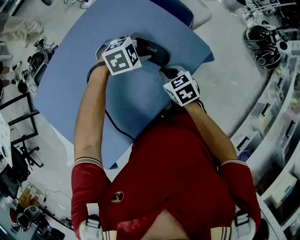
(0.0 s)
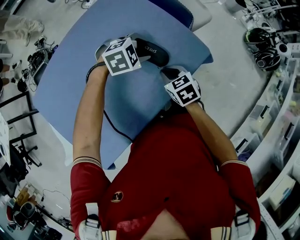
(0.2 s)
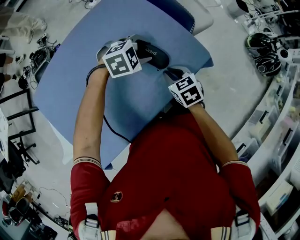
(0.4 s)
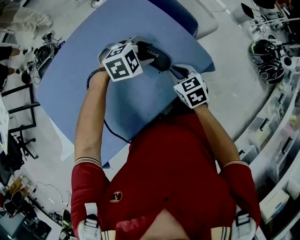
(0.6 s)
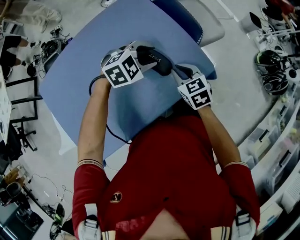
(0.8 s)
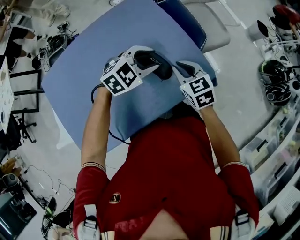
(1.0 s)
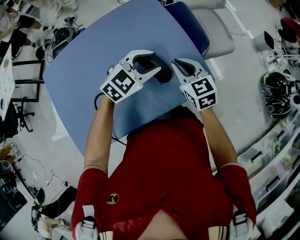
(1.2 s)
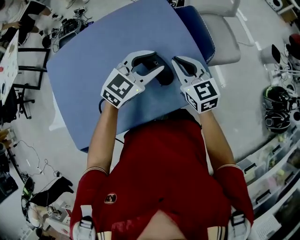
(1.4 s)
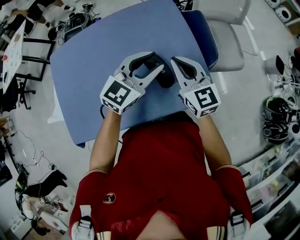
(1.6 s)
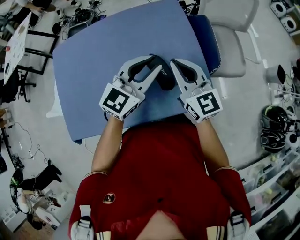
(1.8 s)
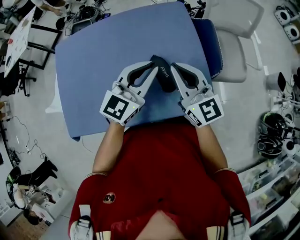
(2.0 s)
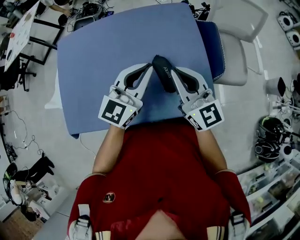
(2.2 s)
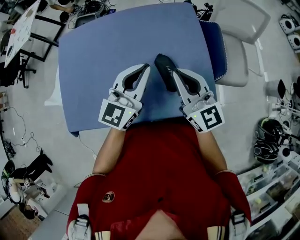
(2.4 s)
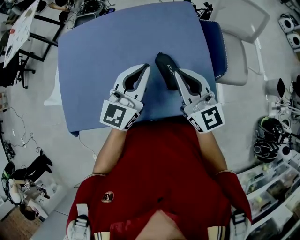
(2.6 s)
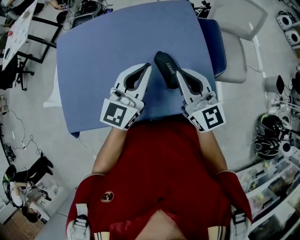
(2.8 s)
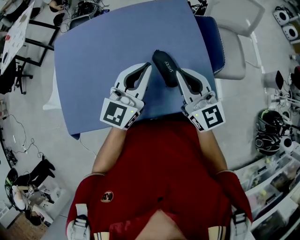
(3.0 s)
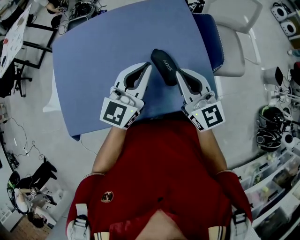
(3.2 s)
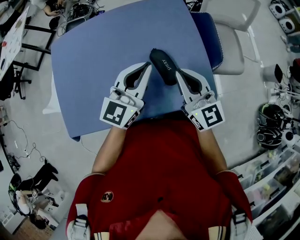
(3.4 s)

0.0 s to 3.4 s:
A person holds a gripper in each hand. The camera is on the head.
0.0 to 1.6 s: The grippers both shift upward by roughly 15 cm. The right gripper tilts its fingers approximately 40 degrees upward. The left gripper points its fingers roughly 40 degrees further upward.
1.6 to 3.4 s: The left gripper shifts approximately 5 cm to the left, swivels approximately 20 degrees, and closes; the right gripper goes roughly 5 cm backward.

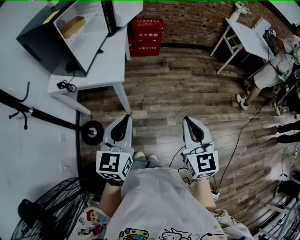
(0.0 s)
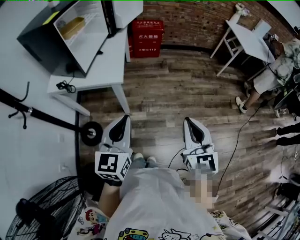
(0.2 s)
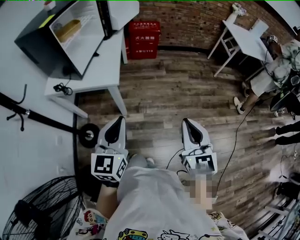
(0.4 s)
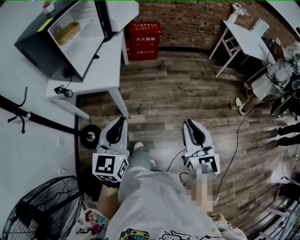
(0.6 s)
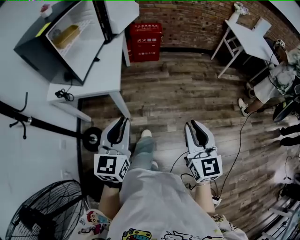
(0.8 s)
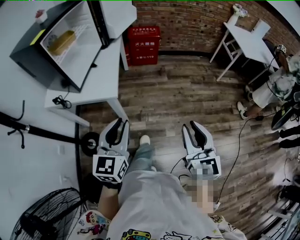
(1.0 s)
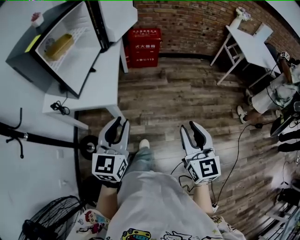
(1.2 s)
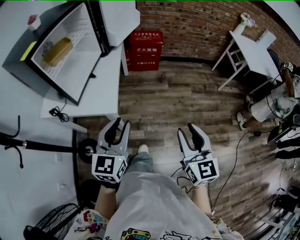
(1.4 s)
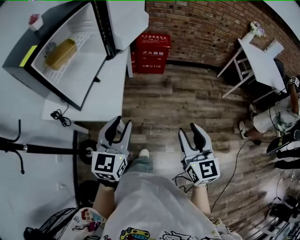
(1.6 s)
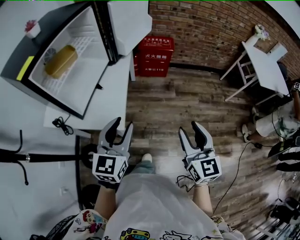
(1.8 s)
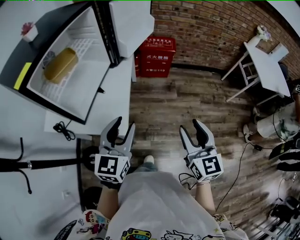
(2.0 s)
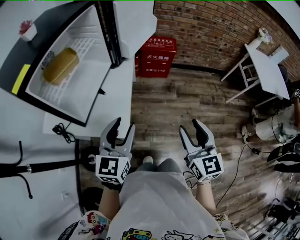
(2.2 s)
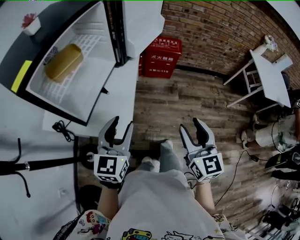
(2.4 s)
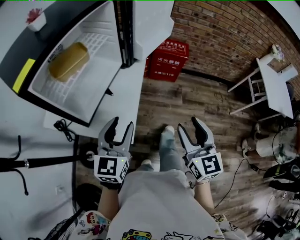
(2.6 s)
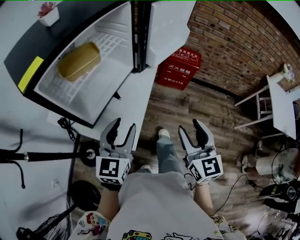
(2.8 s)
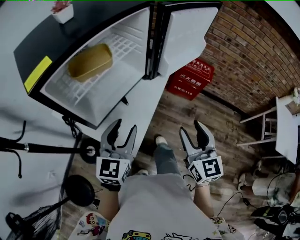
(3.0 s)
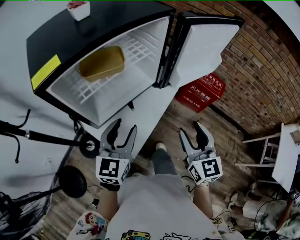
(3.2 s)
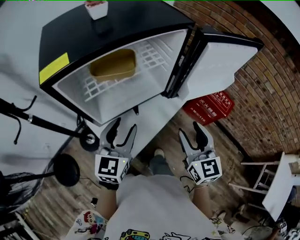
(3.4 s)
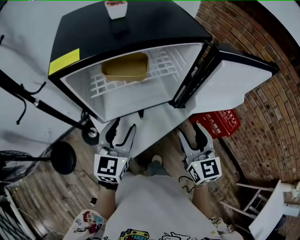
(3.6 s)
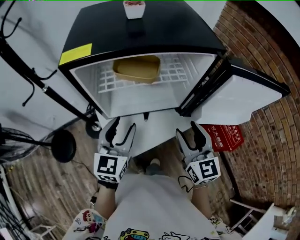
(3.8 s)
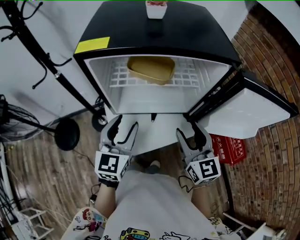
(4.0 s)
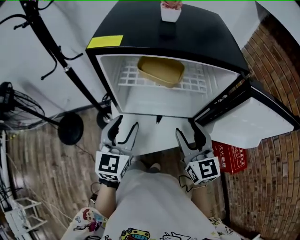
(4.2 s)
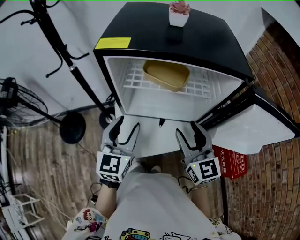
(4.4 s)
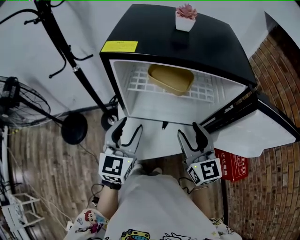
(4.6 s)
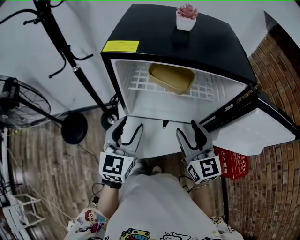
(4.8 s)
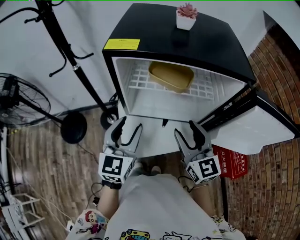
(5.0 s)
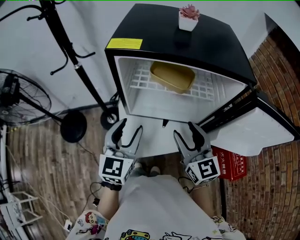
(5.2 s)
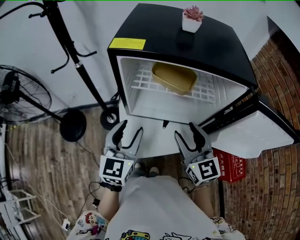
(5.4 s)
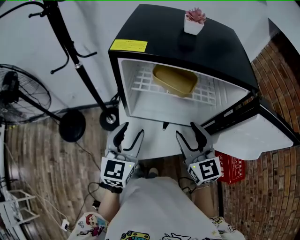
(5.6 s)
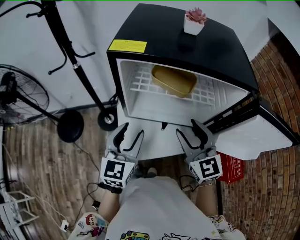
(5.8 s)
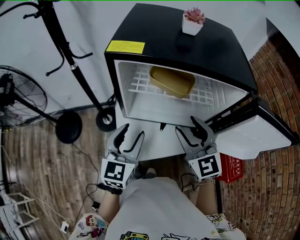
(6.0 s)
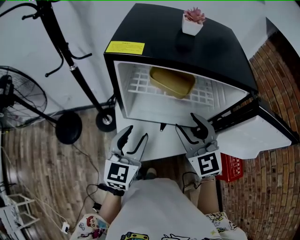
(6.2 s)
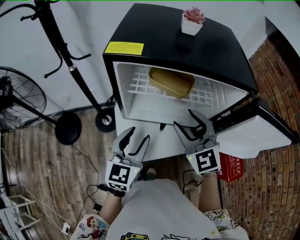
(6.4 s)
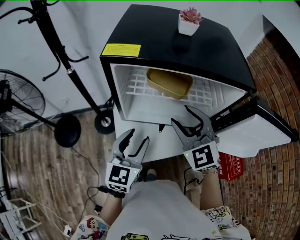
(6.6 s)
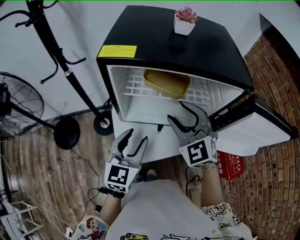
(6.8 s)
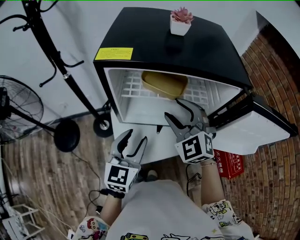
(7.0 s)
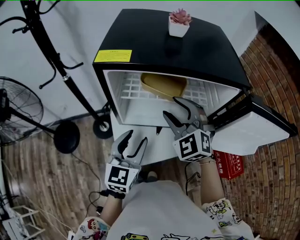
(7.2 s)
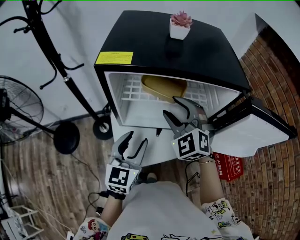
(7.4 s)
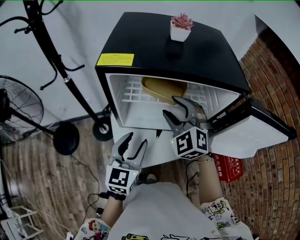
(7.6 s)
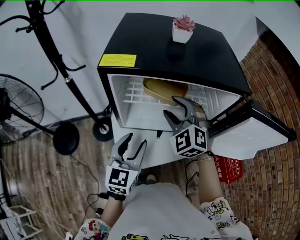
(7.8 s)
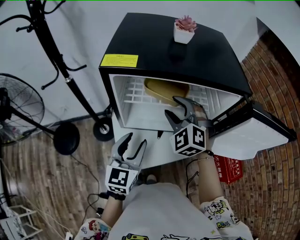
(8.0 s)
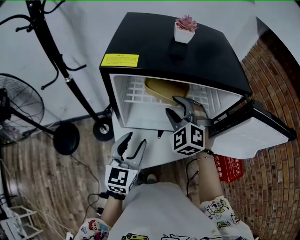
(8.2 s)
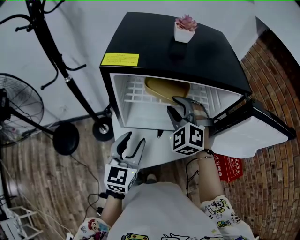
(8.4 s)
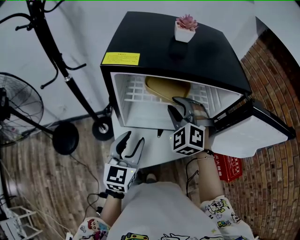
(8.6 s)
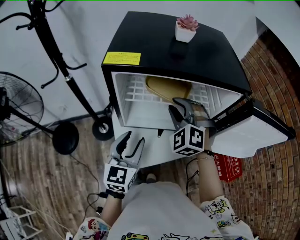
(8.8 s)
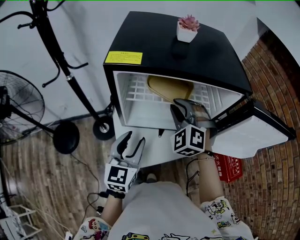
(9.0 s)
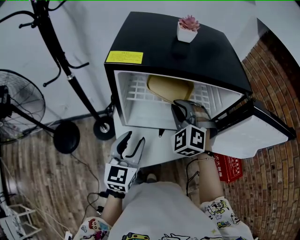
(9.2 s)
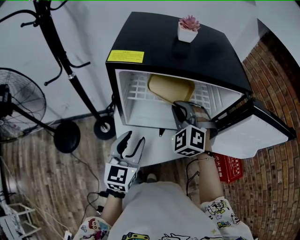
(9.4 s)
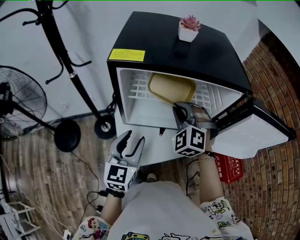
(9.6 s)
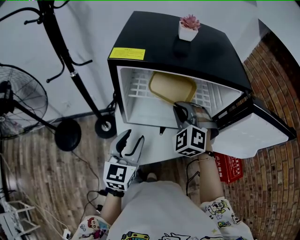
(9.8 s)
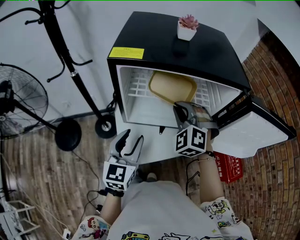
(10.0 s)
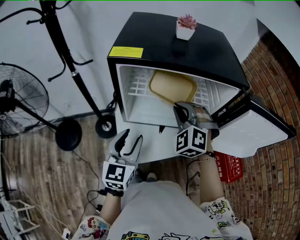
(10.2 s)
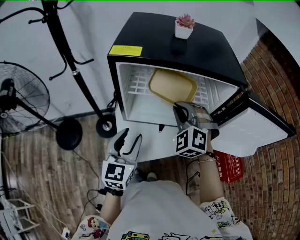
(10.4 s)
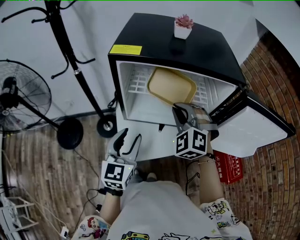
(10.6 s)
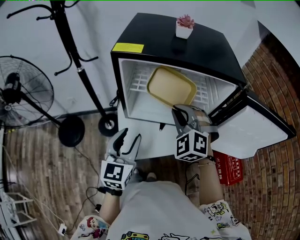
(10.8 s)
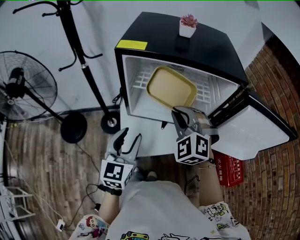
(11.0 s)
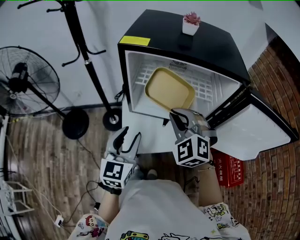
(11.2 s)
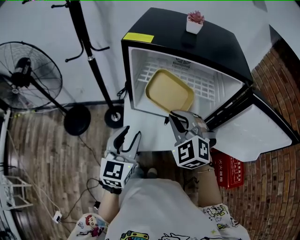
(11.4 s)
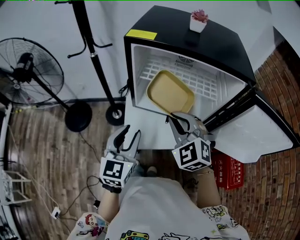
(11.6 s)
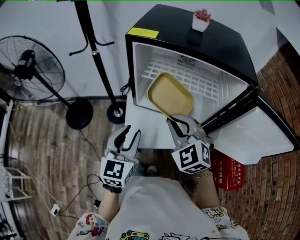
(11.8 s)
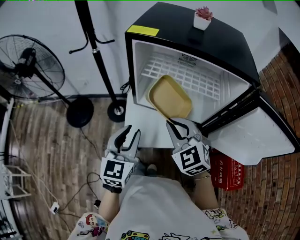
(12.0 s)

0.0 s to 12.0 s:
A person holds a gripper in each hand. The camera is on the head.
0.0 to 1.6 s: The grippers both shift forward by roughly 20 cm. The left gripper opens up. Meanwhile the right gripper opens its fingers.
1.6 to 3.0 s: The left gripper moves forward and to the left, about 20 cm, and swivels roughly 20 degrees. Meanwhile the right gripper travels forward by some 25 cm, and rotates approximately 20 degrees.
3.0 to 4.4 s: The right gripper shifts by roughly 20 cm, and swivels approximately 60 degrees; the left gripper changes place by about 5 cm, and turns by about 60 degrees.
4.4 to 6.0 s: The right gripper rotates about 20 degrees.
6.0 to 7.6 s: The right gripper heads forward, covering approximately 10 cm, and changes its angle by roughly 30 degrees.
7.6 to 9.0 s: The right gripper closes up.
9.0 to 10.4 s: The grippers move only a little.
10.4 to 12.0 s: The left gripper travels backward by roughly 5 cm; the right gripper travels backward by roughly 10 cm, and changes its angle by approximately 30 degrees.

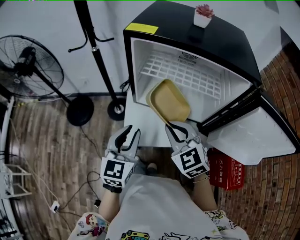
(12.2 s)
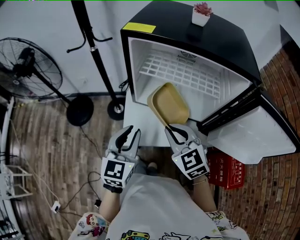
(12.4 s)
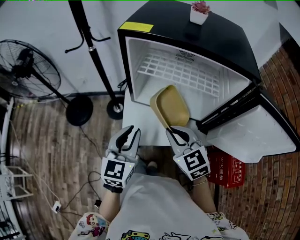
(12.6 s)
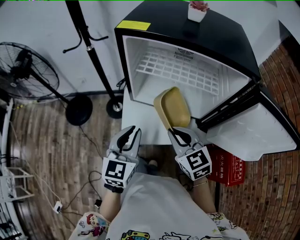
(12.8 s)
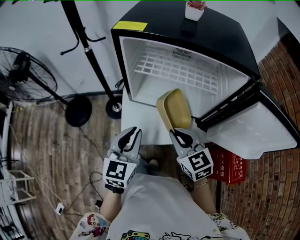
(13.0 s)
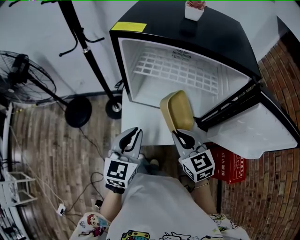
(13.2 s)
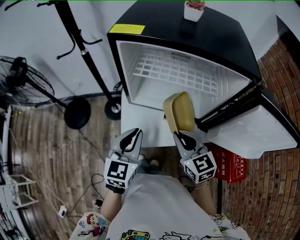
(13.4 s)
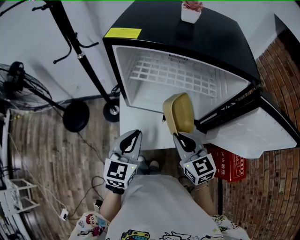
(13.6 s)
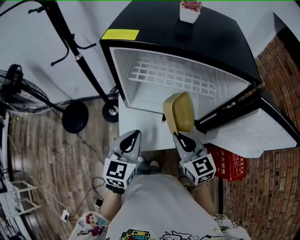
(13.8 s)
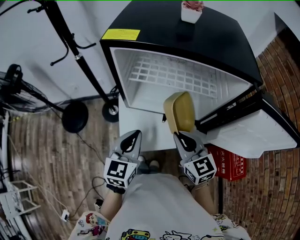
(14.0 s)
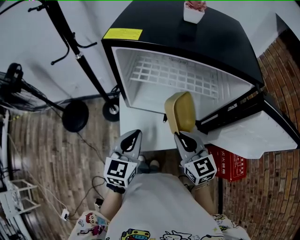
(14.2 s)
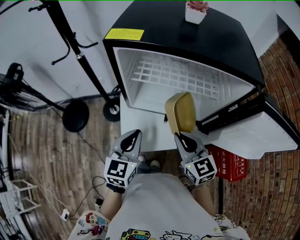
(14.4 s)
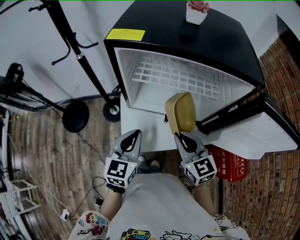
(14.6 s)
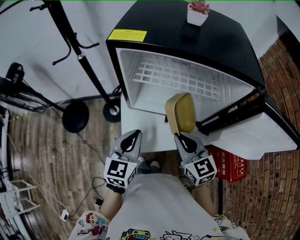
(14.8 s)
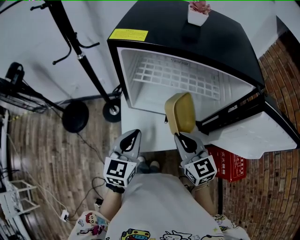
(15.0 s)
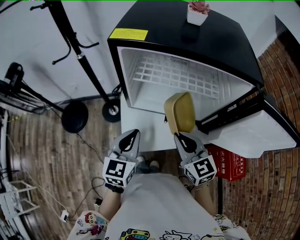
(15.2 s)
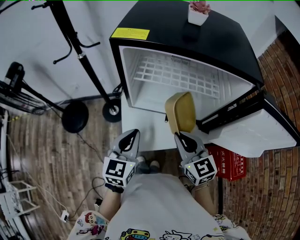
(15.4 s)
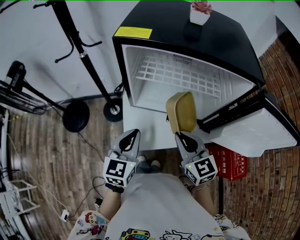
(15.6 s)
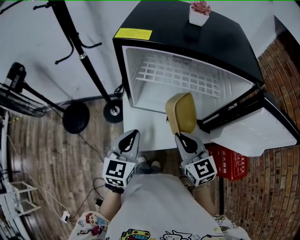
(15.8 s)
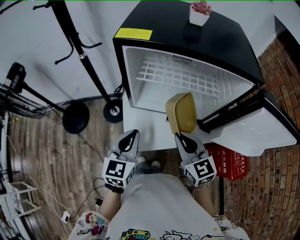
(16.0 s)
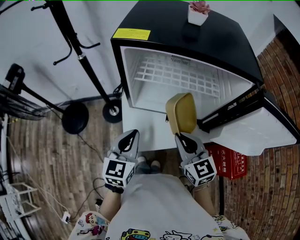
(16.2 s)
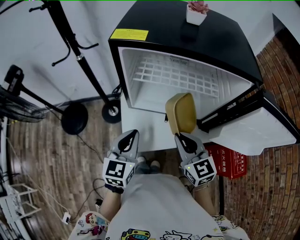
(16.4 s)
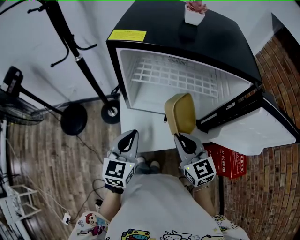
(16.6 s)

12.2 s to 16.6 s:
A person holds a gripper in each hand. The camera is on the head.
12.2 to 13.6 s: The right gripper goes roughly 5 cm to the right, and turns by some 30 degrees.
13.6 to 15.2 s: There are only small adjustments of the grippers.
15.2 to 16.6 s: Both grippers stay about where they are.

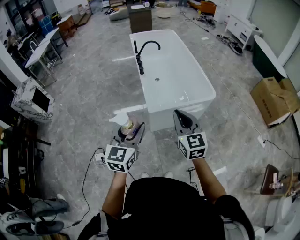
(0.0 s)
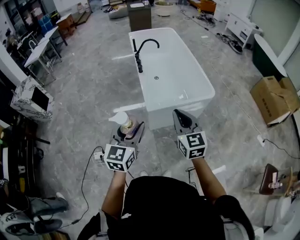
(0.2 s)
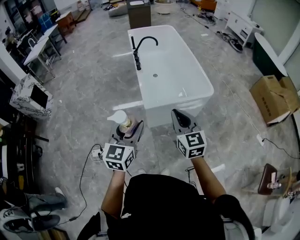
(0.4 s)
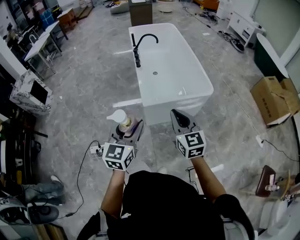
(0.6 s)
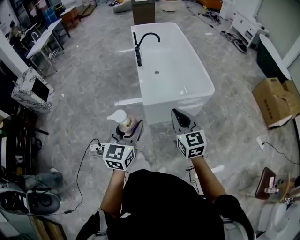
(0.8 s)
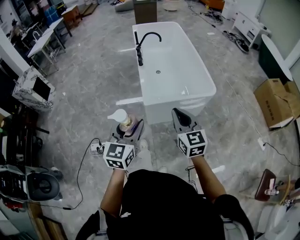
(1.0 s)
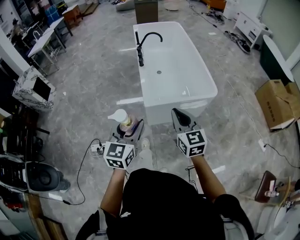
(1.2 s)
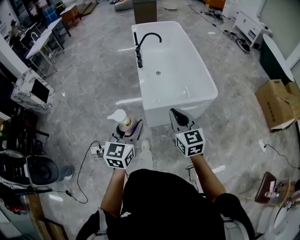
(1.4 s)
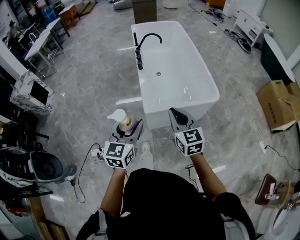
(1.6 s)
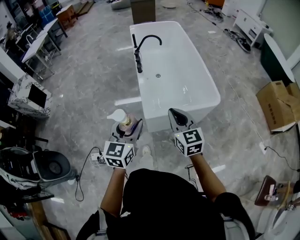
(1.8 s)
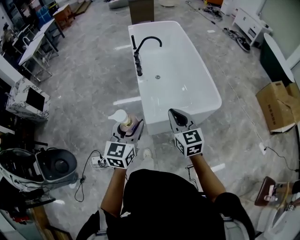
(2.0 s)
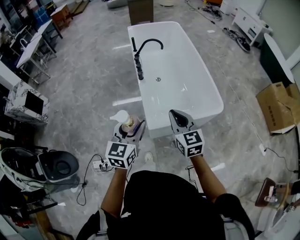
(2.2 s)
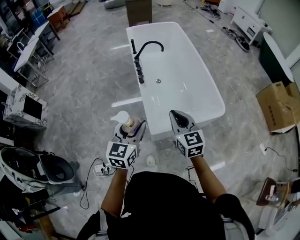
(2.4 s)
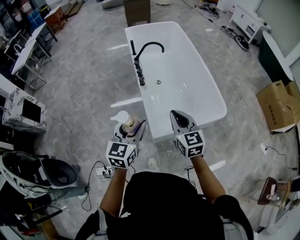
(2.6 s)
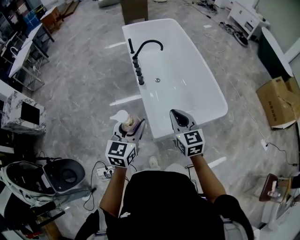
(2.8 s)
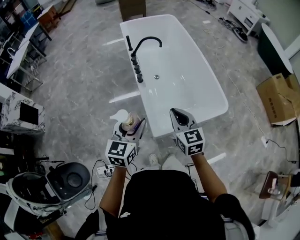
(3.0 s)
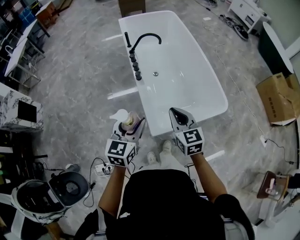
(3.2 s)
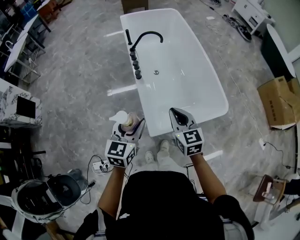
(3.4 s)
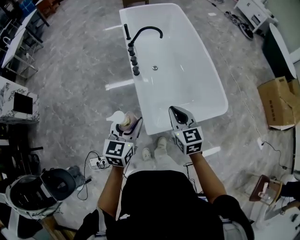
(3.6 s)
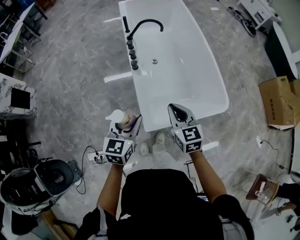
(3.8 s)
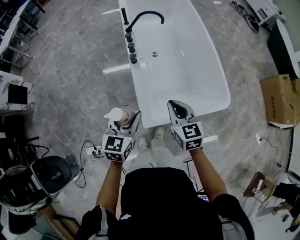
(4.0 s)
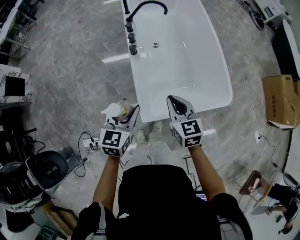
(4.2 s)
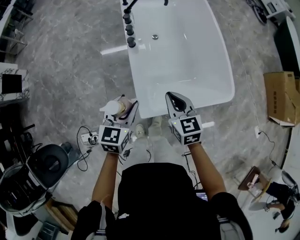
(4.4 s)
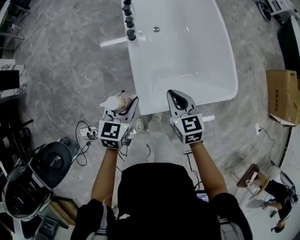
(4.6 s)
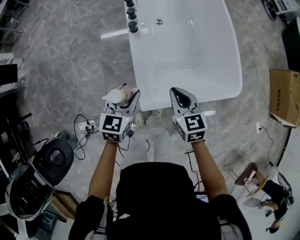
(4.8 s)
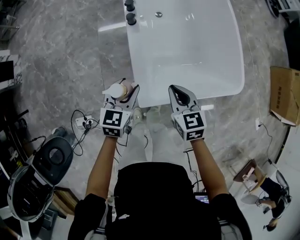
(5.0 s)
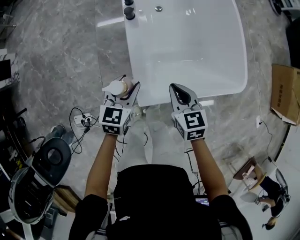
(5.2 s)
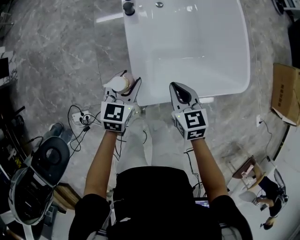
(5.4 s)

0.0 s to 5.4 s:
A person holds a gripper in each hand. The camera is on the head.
0.0 to 1.4 s: The left gripper is displaced to the right and forward by roughly 10 cm. The right gripper goes roughly 10 cm forward, downward and to the right.
1.4 to 2.8 s: Both grippers move forward, about 30 cm.
2.8 to 4.0 s: Both grippers travel together downward and forward, approximately 15 cm.
4.0 to 5.4 s: Both grippers move downward, some 20 cm.
